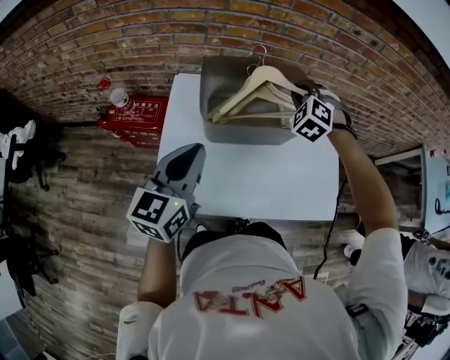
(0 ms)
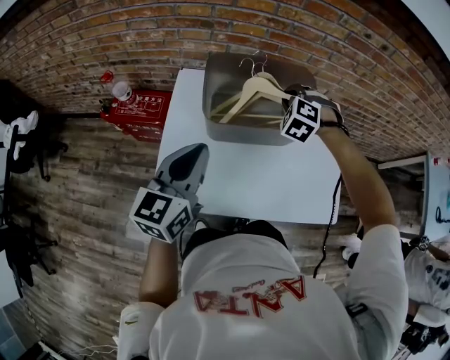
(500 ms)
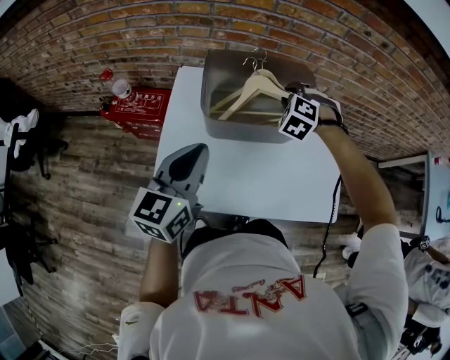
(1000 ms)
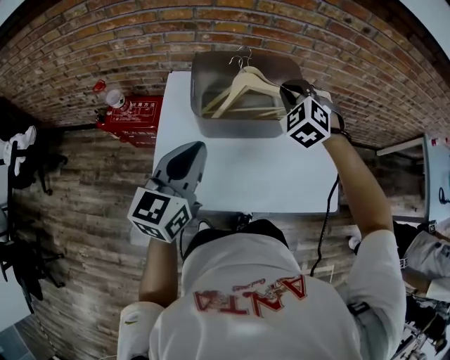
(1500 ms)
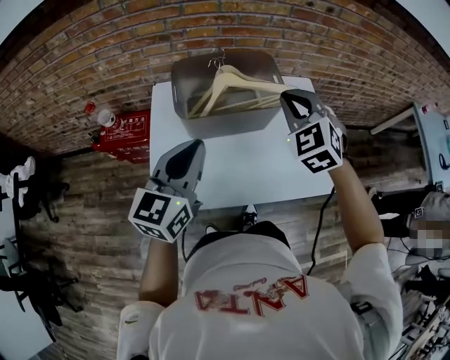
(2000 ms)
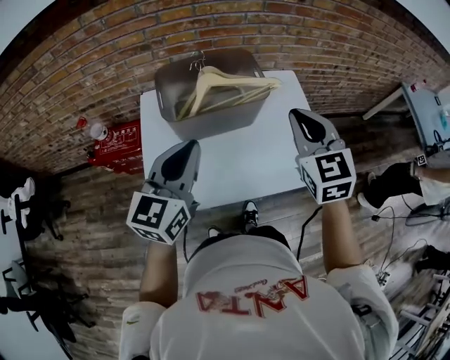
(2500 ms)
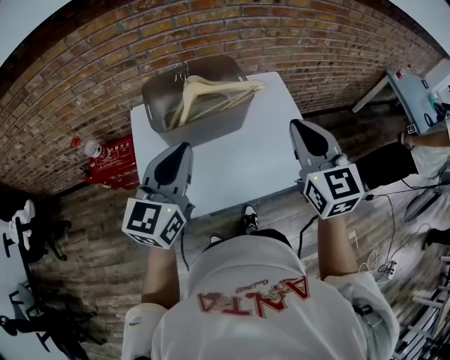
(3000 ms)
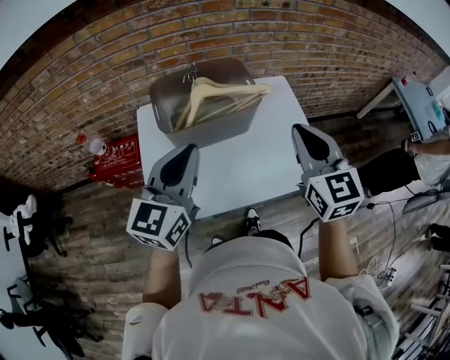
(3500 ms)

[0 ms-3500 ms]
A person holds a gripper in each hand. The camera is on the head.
0 ms to 2000 ms: The left gripper moves to the right, about 5 cm. Meanwhile the right gripper shifts some 15 cm backward and upward, and changes its angle by approximately 30 degrees.
2000 ms to 3500 ms: The right gripper shifts roughly 15 cm backward and to the right, and swivels approximately 40 degrees. The left gripper shifts by roughly 5 cm.

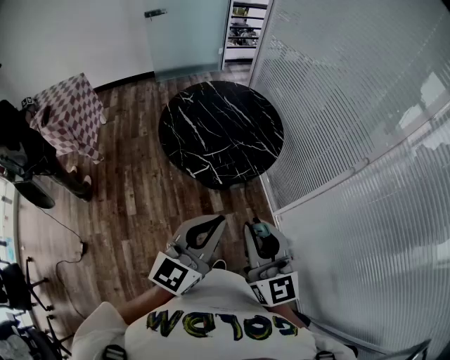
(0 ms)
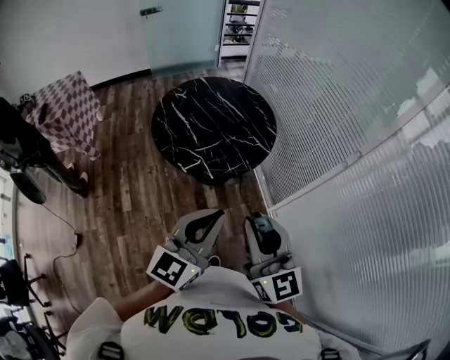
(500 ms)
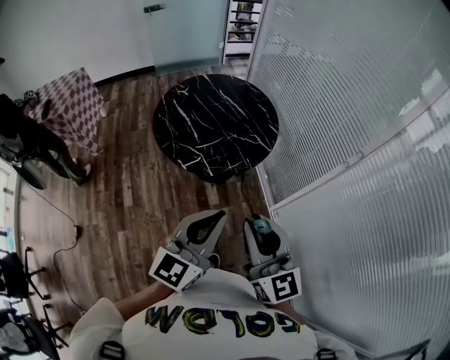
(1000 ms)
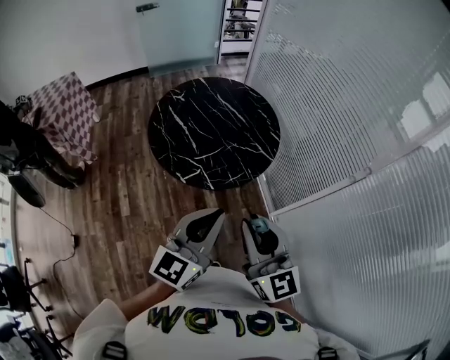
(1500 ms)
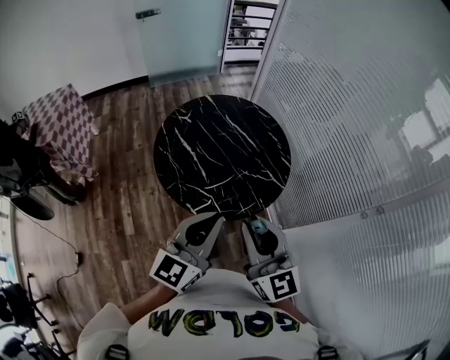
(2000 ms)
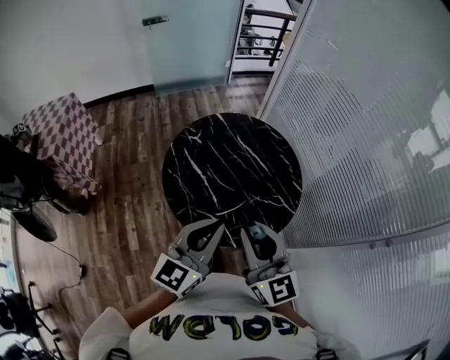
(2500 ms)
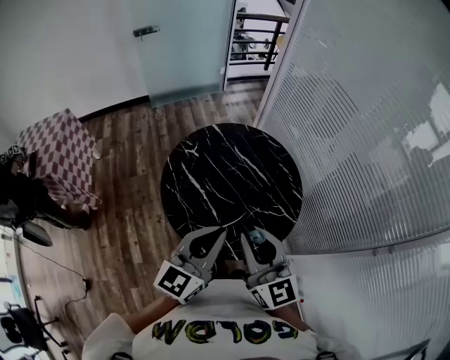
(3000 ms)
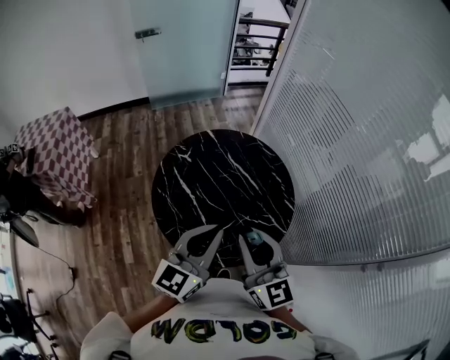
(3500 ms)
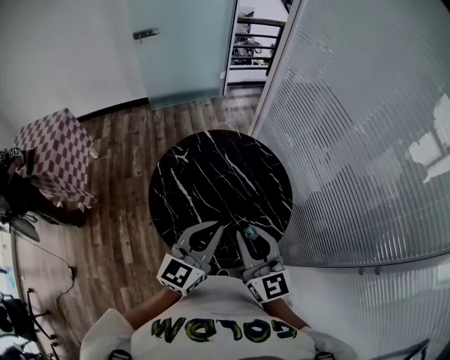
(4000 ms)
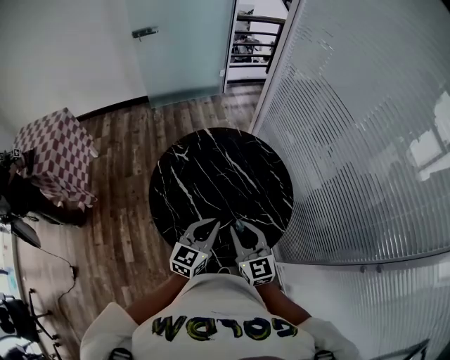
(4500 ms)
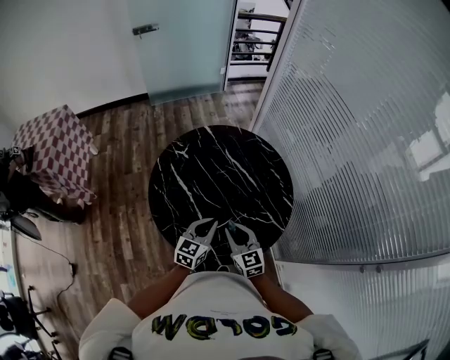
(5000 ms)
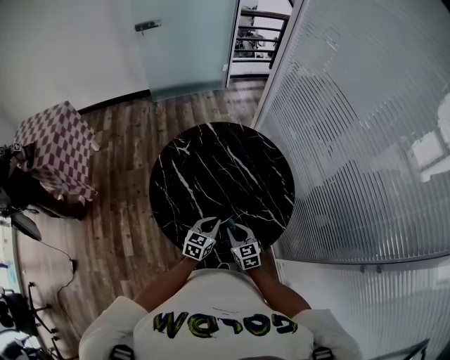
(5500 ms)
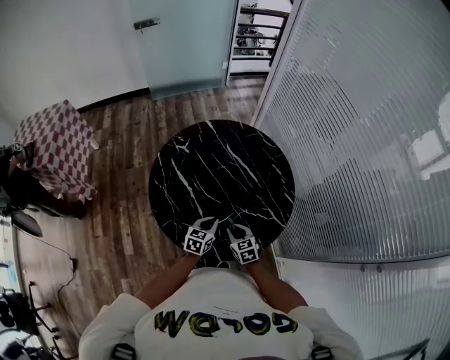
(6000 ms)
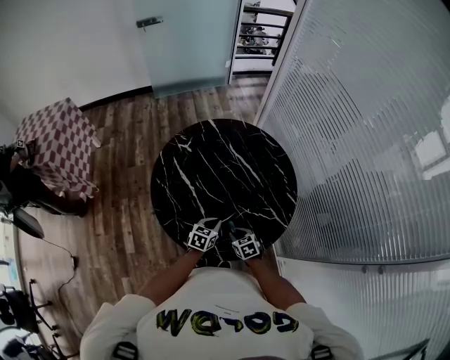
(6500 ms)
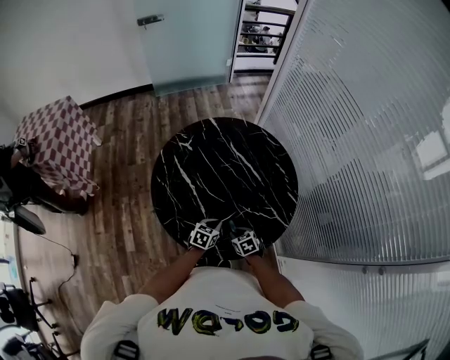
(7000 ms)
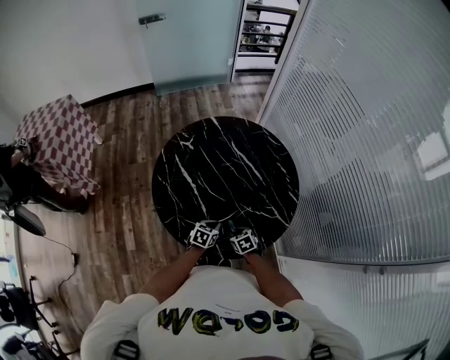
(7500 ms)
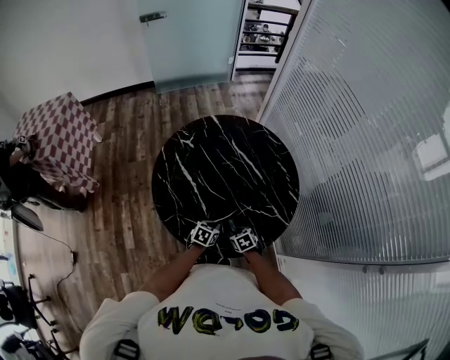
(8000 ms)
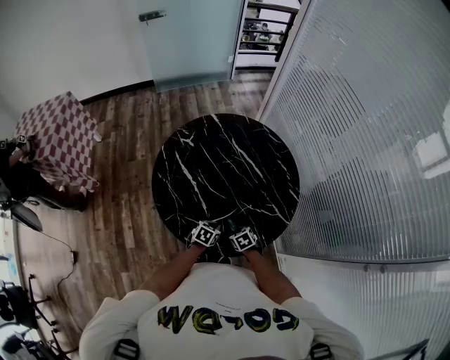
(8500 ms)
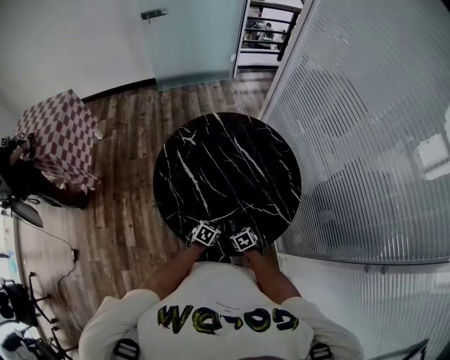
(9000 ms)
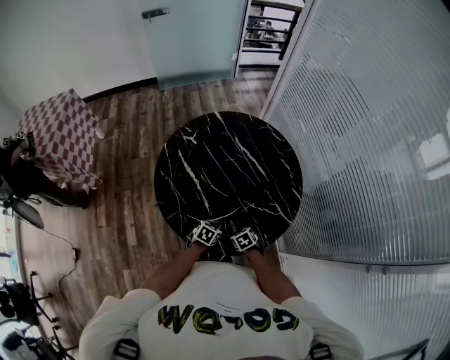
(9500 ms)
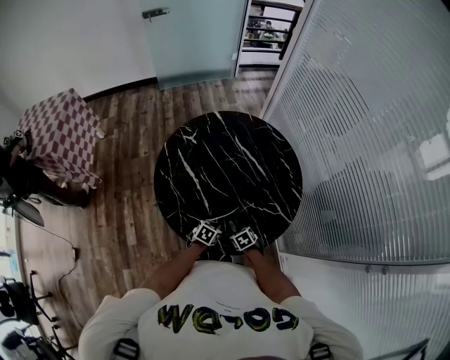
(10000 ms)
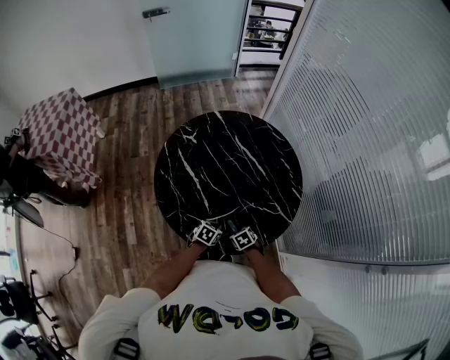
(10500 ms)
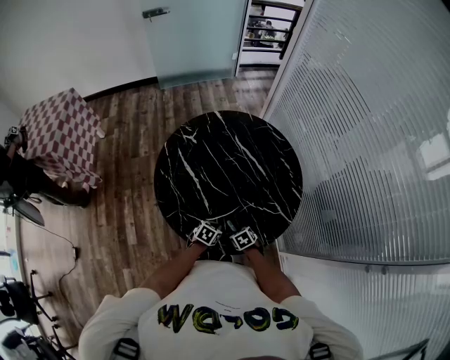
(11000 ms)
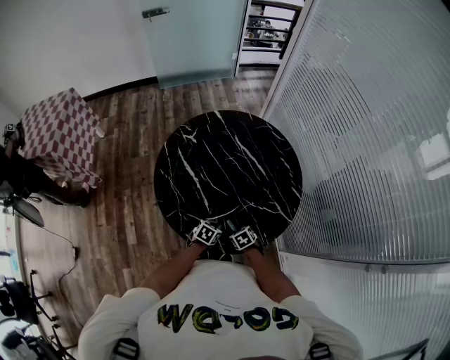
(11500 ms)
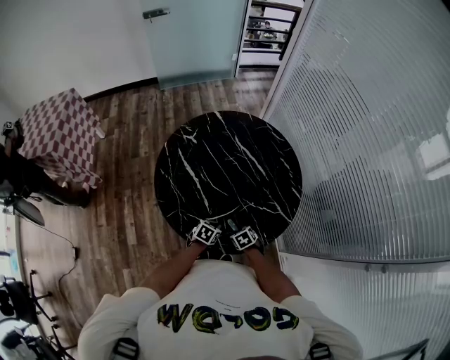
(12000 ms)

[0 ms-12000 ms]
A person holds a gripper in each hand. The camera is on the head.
0 ms to 2000 ms: Both grippers move forward, roughly 20 cm.
2000 ms to 4000 ms: The grippers both shift forward by about 20 cm.
4000 ms to 6000 ms: Both grippers travel together downward, roughly 35 cm. The left gripper angles its fingers downward, by roughly 30 degrees, while the right gripper angles its fingers downward, by some 40 degrees.
6000 ms to 8000 ms: The grippers both shift downward by roughly 10 cm. The left gripper turns by roughly 20 degrees; the right gripper swivels some 20 degrees.
8000 ms to 10000 ms: The grippers stay close to where they were, moving slightly.
10000 ms to 12000 ms: Both grippers stay about where they are.

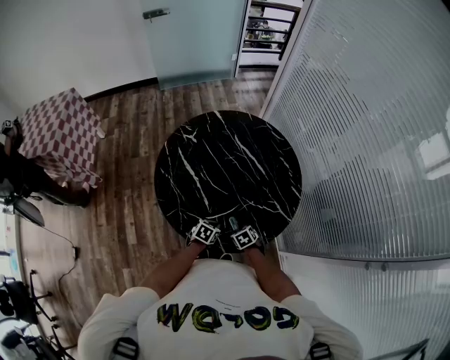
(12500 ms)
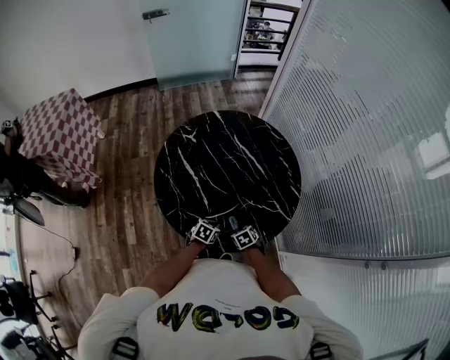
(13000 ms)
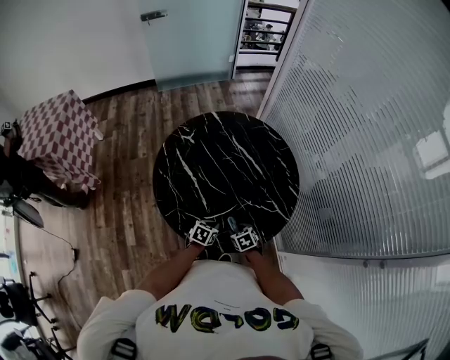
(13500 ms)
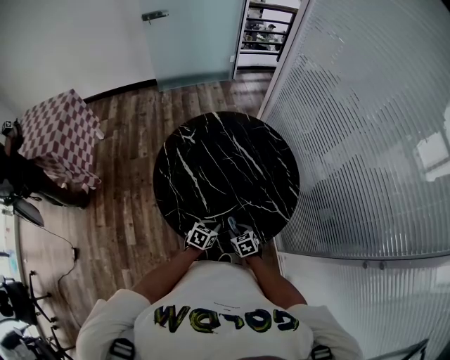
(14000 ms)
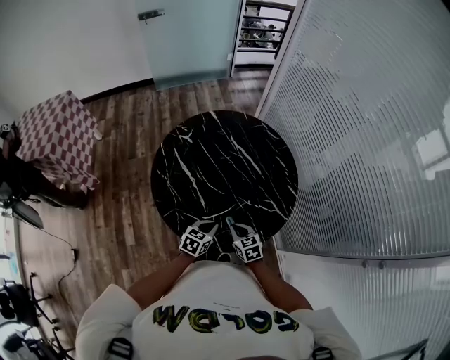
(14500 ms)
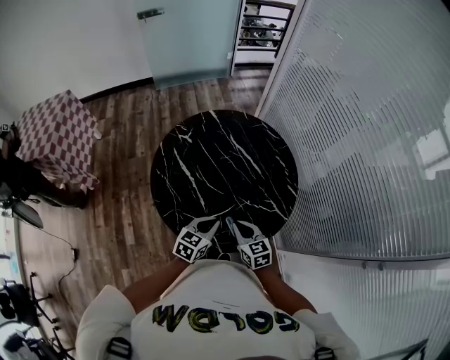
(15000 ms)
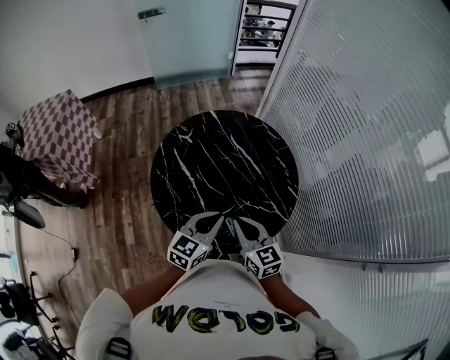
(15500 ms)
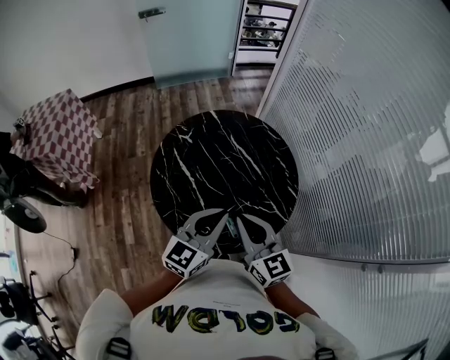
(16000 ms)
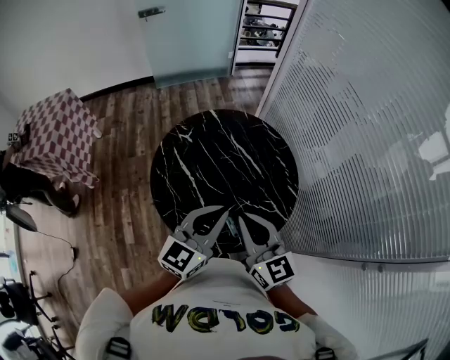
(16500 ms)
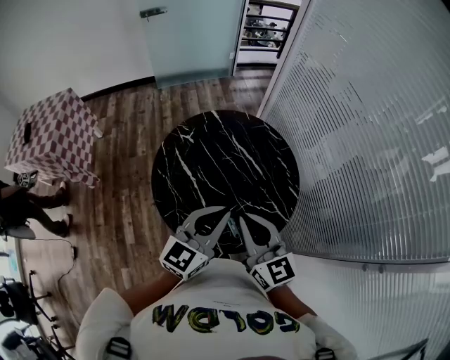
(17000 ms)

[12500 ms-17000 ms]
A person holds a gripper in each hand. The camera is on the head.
12500 ms to 14500 ms: The two grippers go some 10 cm upward. The right gripper turns by approximately 30 degrees, and closes.
14500 ms to 17000 ms: The grippers both shift upward by approximately 35 cm. The right gripper tips its fingers upward by roughly 40 degrees; the left gripper tilts its fingers roughly 40 degrees upward.

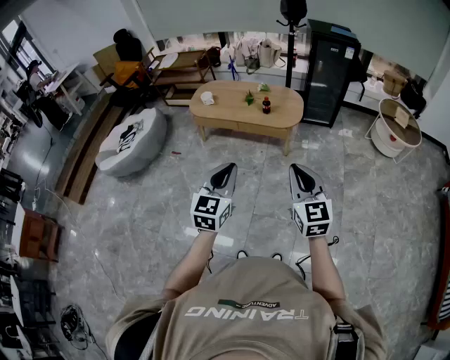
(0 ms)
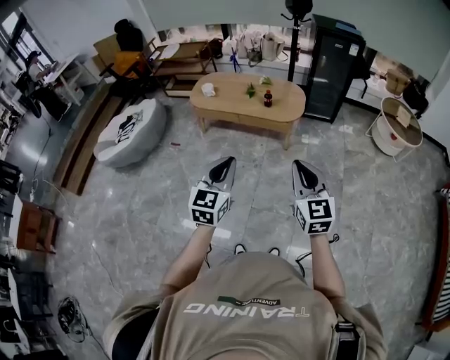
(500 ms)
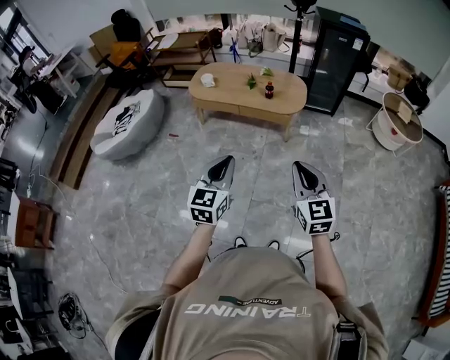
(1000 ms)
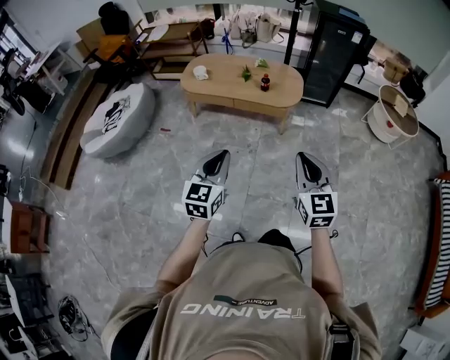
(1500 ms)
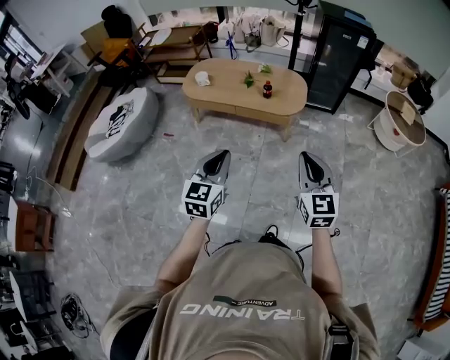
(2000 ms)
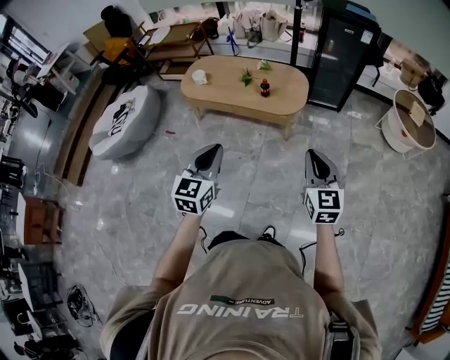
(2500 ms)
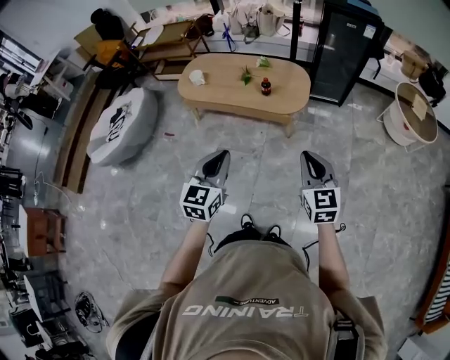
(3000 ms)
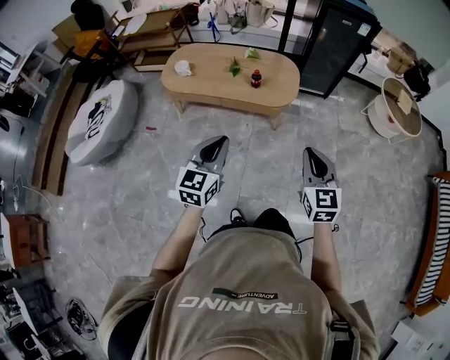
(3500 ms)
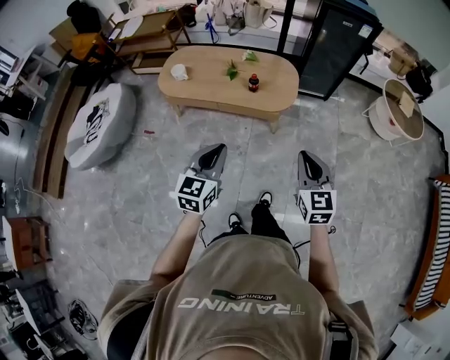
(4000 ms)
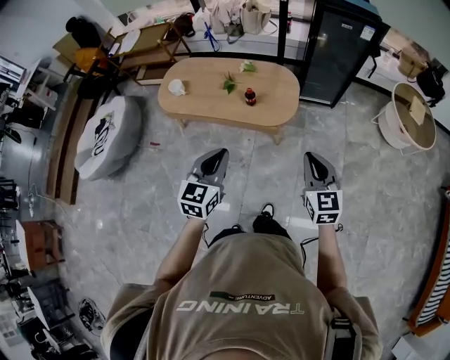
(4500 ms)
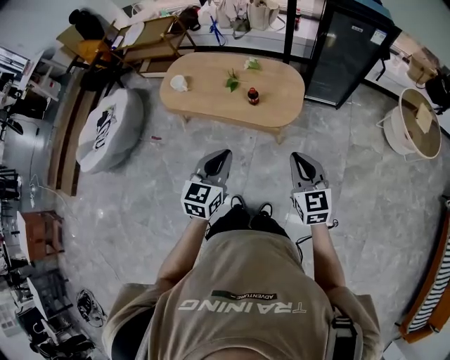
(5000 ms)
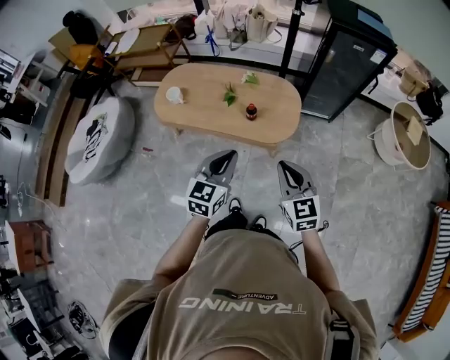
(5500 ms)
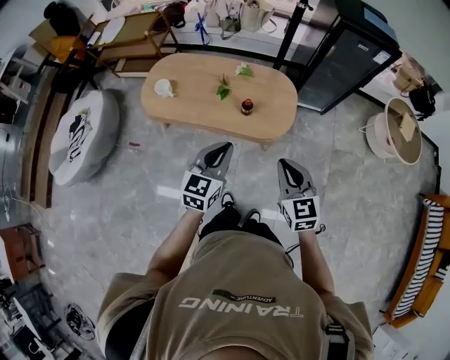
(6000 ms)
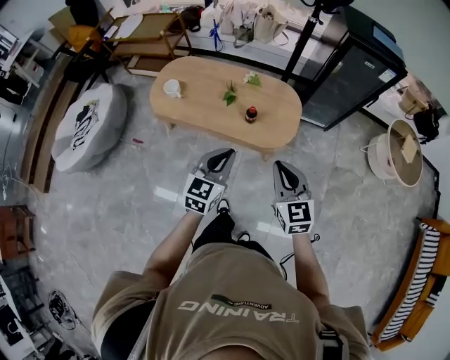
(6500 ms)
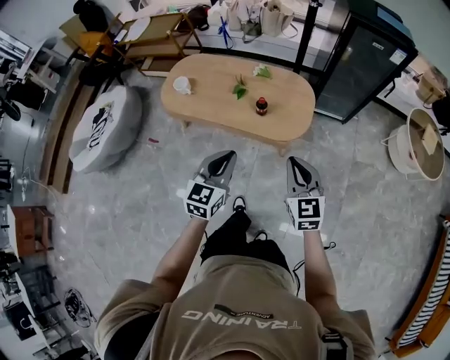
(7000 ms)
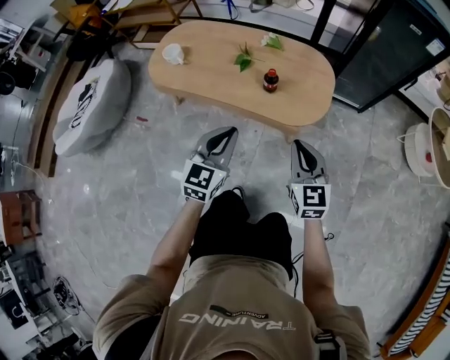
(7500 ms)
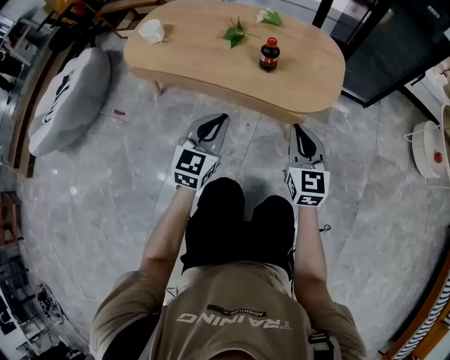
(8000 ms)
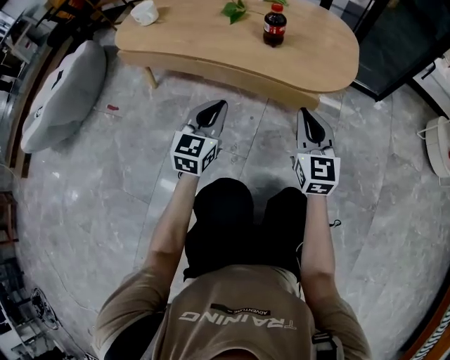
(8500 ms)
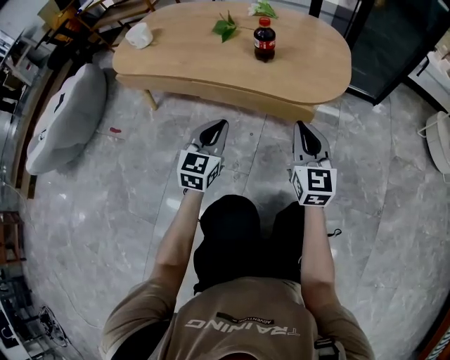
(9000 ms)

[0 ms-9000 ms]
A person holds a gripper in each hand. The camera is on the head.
0 ms to 2000 ms: The two grippers go roughly 10 cm forward.
2000 ms to 4500 ms: The left gripper heads forward, covering approximately 25 cm, while the right gripper heads forward and to the right, covering about 30 cm.
4500 ms to 7000 ms: The right gripper moves to the left, forward and downward, about 15 cm; the left gripper goes roughly 10 cm forward and downward.
7000 ms to 9000 ms: Both grippers travel together downward, about 50 cm.
